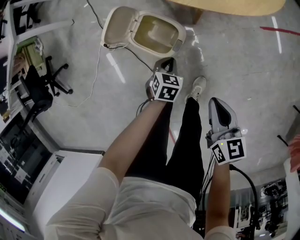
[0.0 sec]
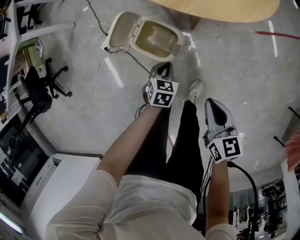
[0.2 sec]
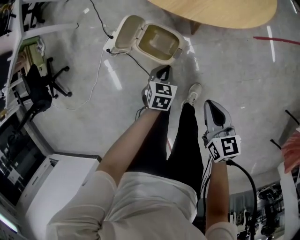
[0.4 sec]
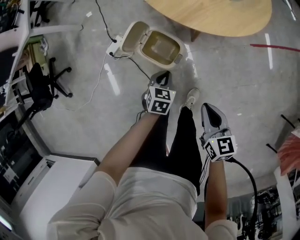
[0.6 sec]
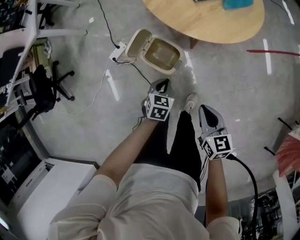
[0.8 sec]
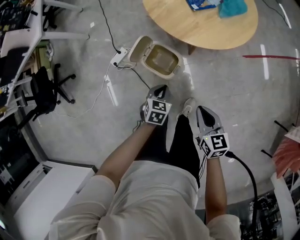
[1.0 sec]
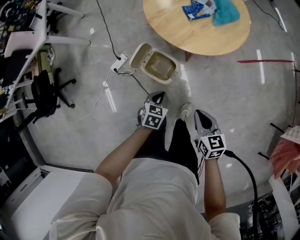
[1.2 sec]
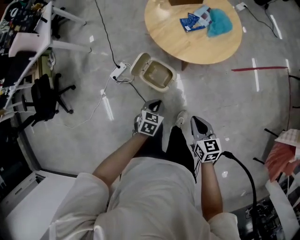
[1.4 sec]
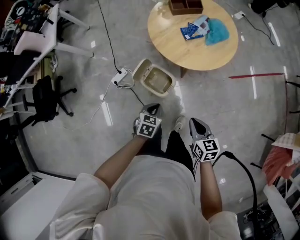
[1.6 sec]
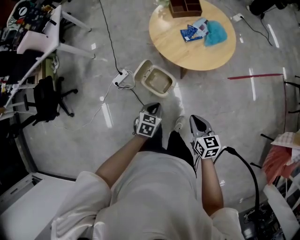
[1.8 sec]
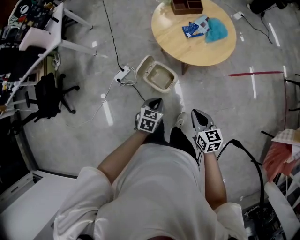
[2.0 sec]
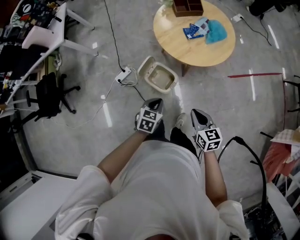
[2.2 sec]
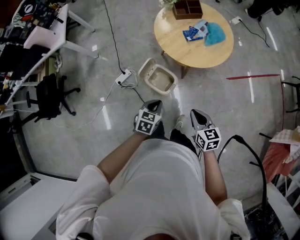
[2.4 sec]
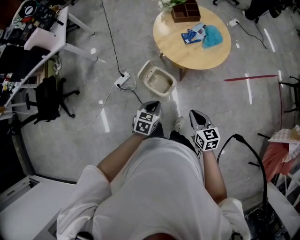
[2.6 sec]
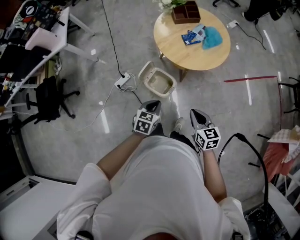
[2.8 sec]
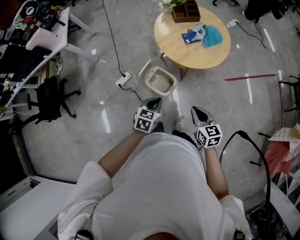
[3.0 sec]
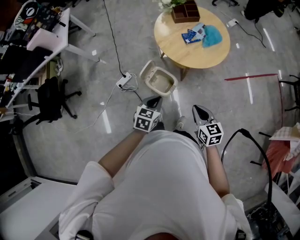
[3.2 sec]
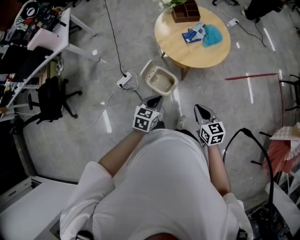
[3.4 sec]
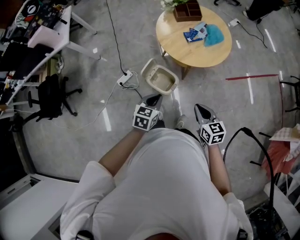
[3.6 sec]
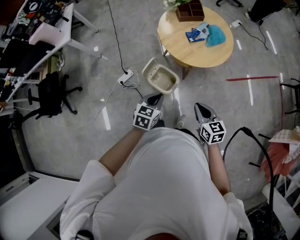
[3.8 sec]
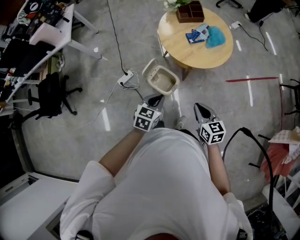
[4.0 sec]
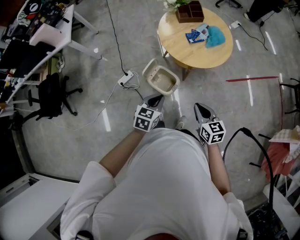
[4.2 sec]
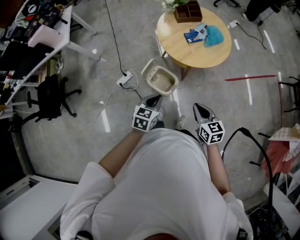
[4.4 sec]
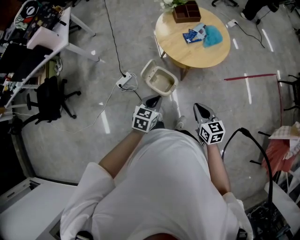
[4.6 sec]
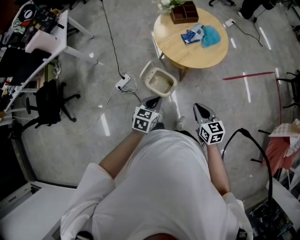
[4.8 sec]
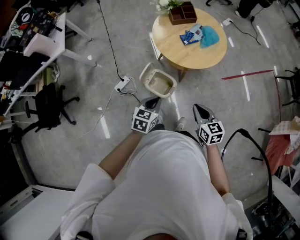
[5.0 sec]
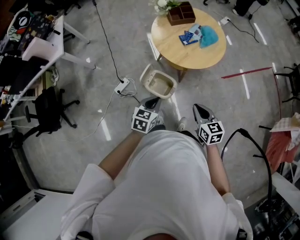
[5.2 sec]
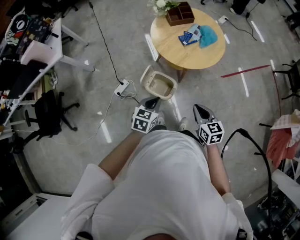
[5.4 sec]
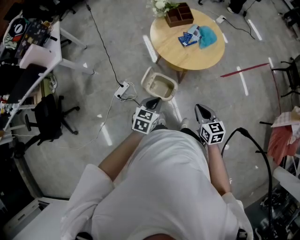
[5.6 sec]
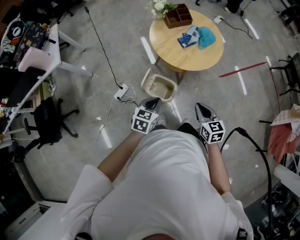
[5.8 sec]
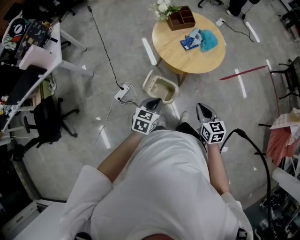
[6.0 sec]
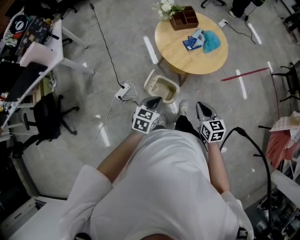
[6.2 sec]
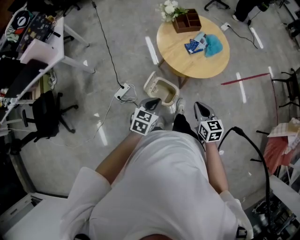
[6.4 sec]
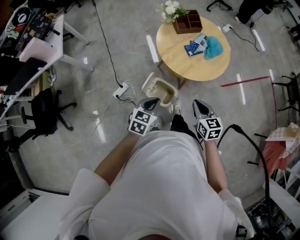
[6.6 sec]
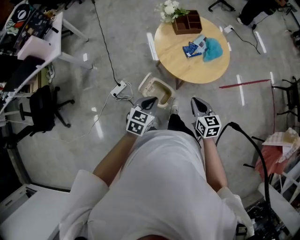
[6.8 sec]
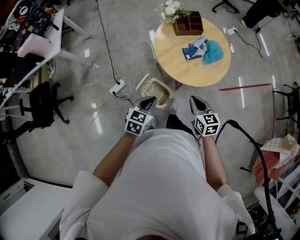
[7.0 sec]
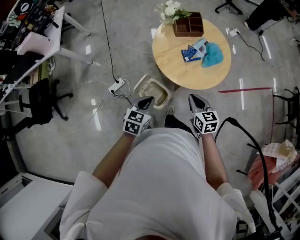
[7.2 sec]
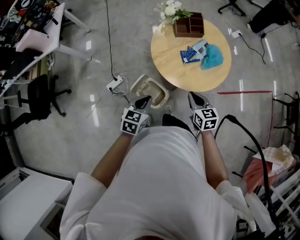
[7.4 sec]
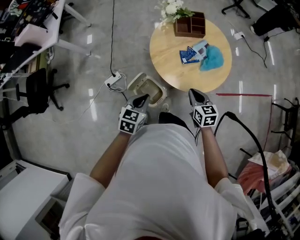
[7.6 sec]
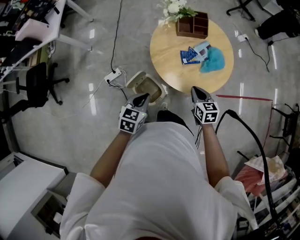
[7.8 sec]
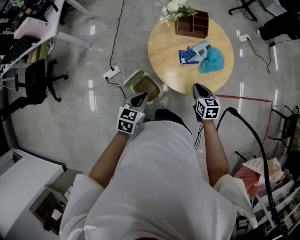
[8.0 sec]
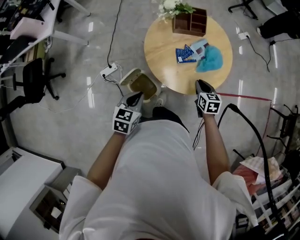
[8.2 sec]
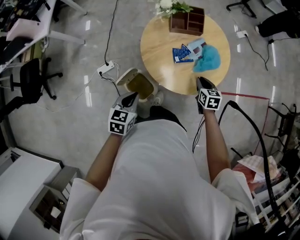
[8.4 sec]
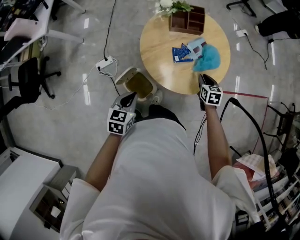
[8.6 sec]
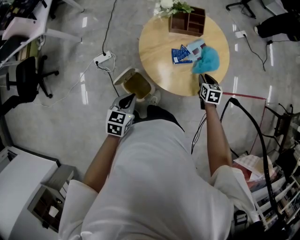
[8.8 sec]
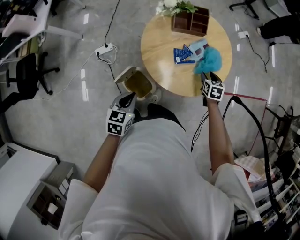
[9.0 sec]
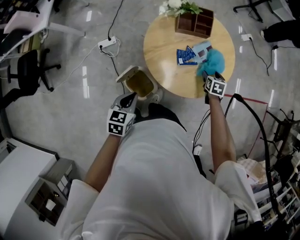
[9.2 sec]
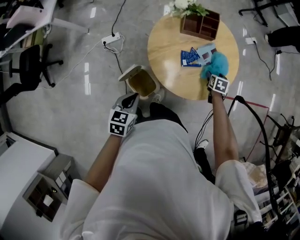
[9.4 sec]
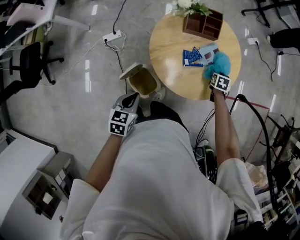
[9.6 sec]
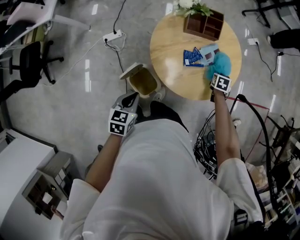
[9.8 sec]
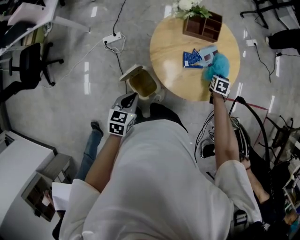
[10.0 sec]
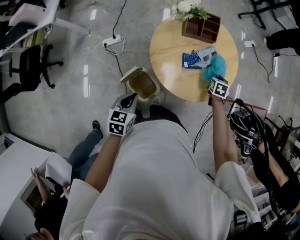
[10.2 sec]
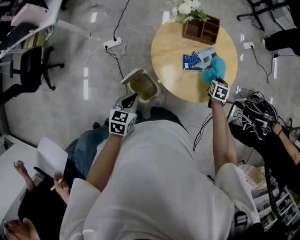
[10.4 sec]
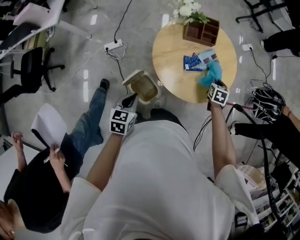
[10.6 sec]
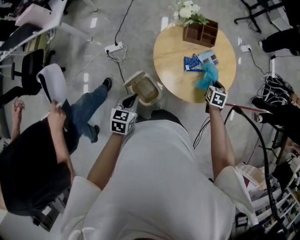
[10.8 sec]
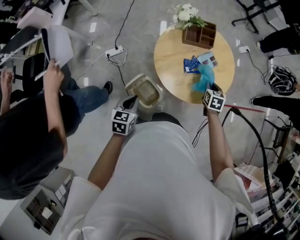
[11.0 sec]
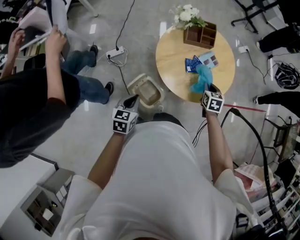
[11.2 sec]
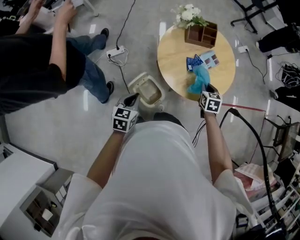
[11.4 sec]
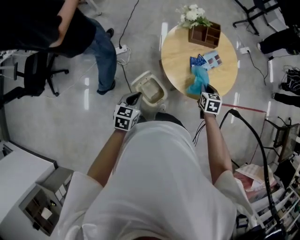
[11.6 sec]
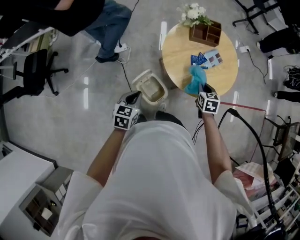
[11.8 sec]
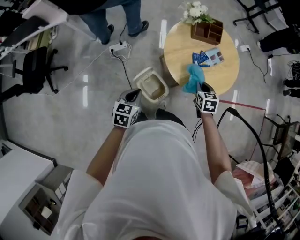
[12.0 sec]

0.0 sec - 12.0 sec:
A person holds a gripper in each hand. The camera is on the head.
0.0 sec - 1.6 sec: The right gripper travels upward by some 20 cm, while the left gripper shifts about 30 cm upward.
1.6 sec - 3.0 sec: The grippers both shift upward by roughly 10 cm.
3.0 sec - 4.4 sec: The grippers move only a little.
4.4 sec - 6.0 sec: The right gripper ends up approximately 5 cm from where it was. The left gripper goes approximately 5 cm to the left.
6.0 sec - 7.6 sec: The right gripper moves forward, approximately 25 cm. Meanwhile the left gripper shifts approximately 15 cm forward.
7.6 sec - 9.0 sec: The left gripper moves roughly 5 cm. Meanwhile the right gripper travels forward, to the right and downward by about 25 cm, turns by some 20 degrees, and opens up.
9.0 sec - 10.4 sec: The right gripper closes up.
10.4 sec - 12.0 sec: The left gripper shifts roughly 10 cm to the left and backward, while the right gripper heads to the left, backward and upward, covering about 25 cm.

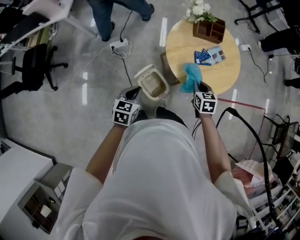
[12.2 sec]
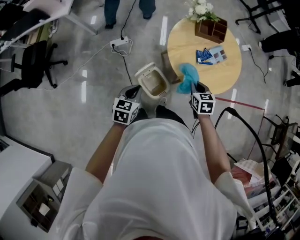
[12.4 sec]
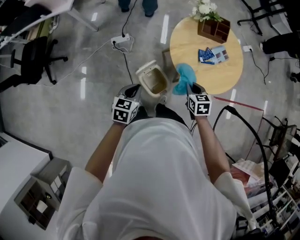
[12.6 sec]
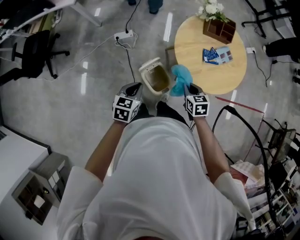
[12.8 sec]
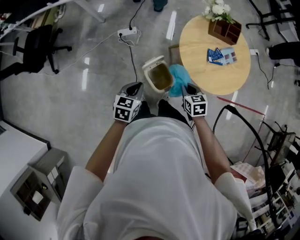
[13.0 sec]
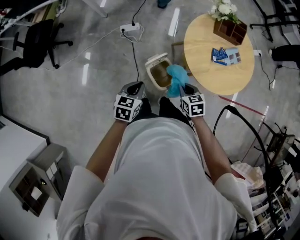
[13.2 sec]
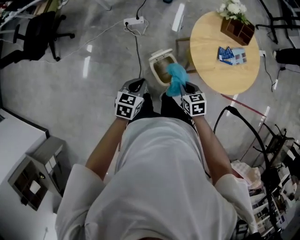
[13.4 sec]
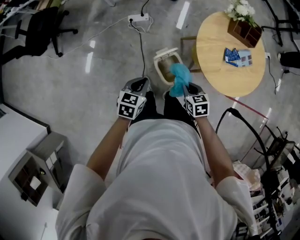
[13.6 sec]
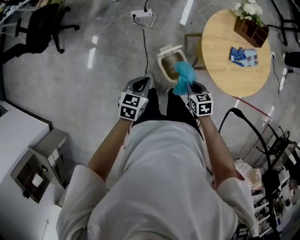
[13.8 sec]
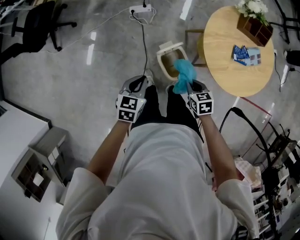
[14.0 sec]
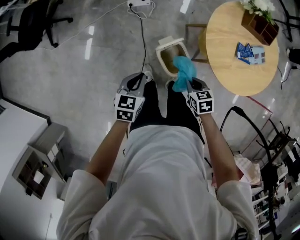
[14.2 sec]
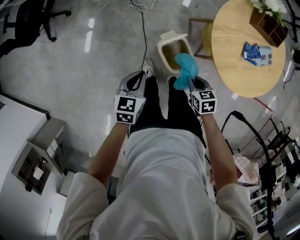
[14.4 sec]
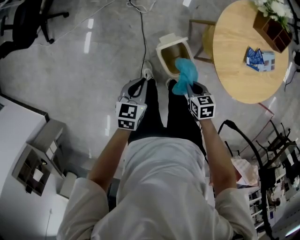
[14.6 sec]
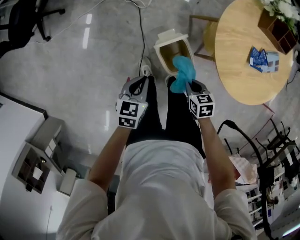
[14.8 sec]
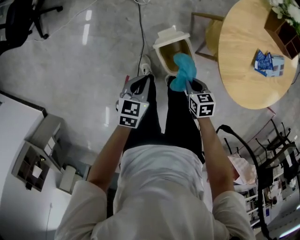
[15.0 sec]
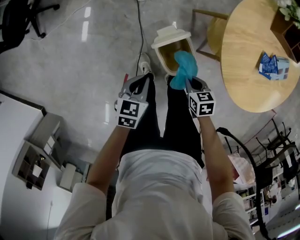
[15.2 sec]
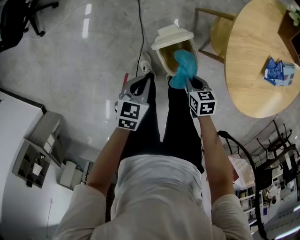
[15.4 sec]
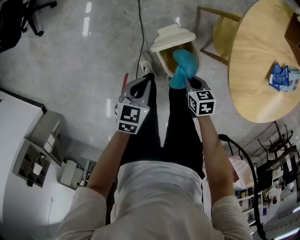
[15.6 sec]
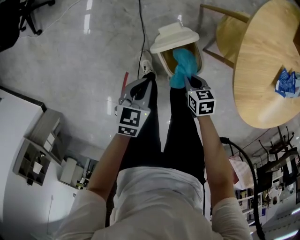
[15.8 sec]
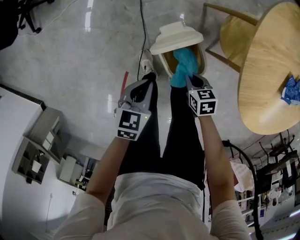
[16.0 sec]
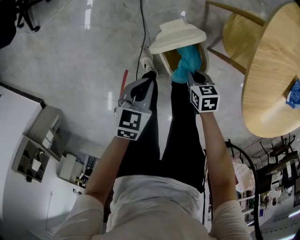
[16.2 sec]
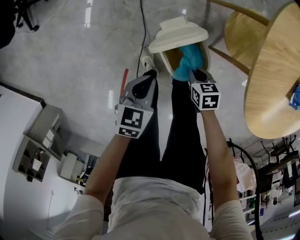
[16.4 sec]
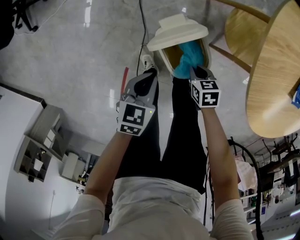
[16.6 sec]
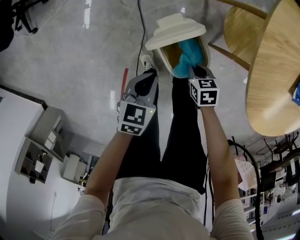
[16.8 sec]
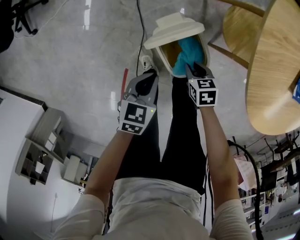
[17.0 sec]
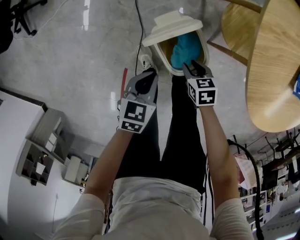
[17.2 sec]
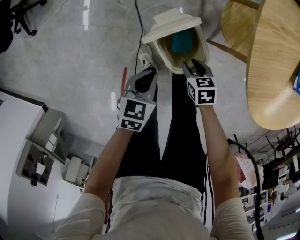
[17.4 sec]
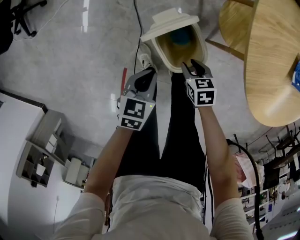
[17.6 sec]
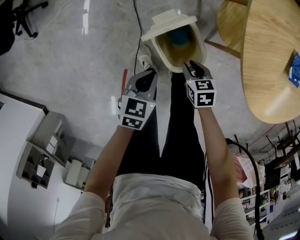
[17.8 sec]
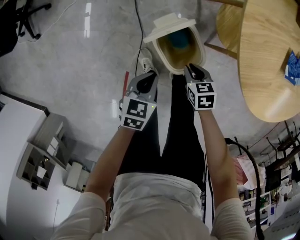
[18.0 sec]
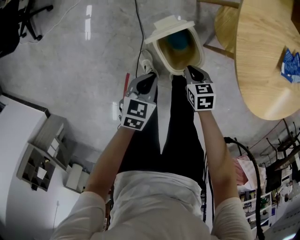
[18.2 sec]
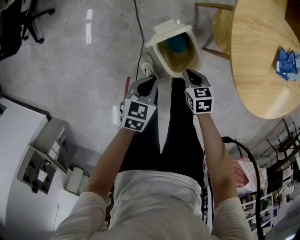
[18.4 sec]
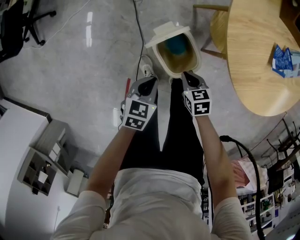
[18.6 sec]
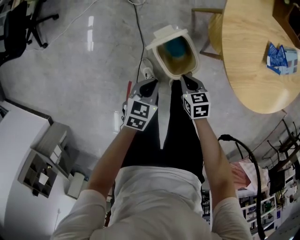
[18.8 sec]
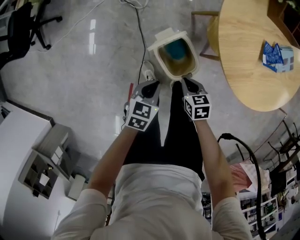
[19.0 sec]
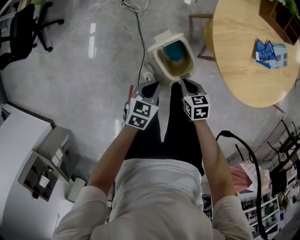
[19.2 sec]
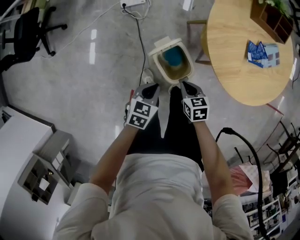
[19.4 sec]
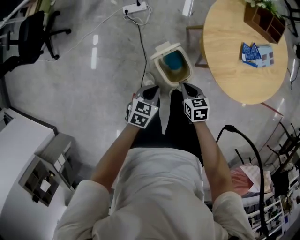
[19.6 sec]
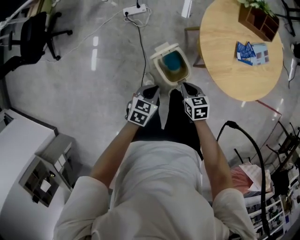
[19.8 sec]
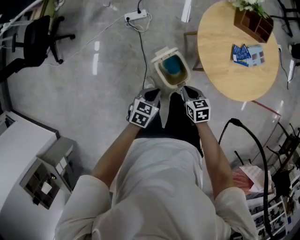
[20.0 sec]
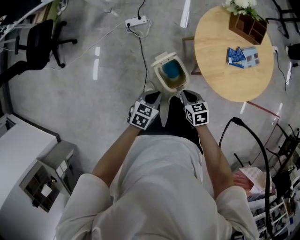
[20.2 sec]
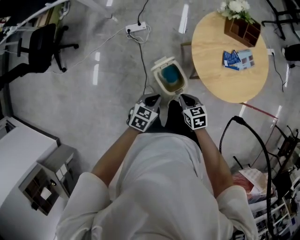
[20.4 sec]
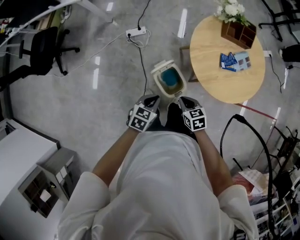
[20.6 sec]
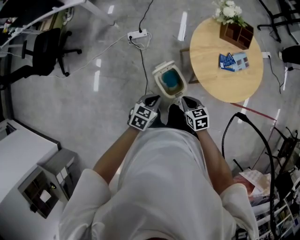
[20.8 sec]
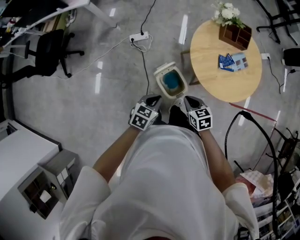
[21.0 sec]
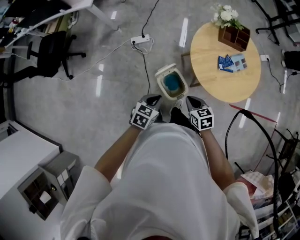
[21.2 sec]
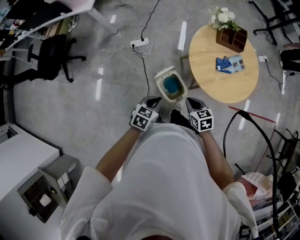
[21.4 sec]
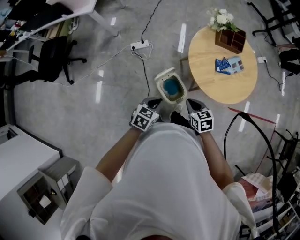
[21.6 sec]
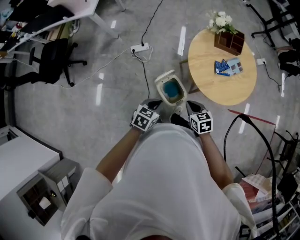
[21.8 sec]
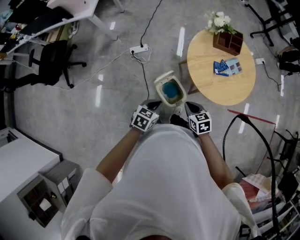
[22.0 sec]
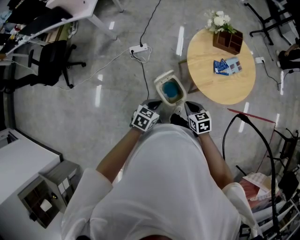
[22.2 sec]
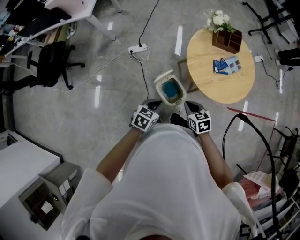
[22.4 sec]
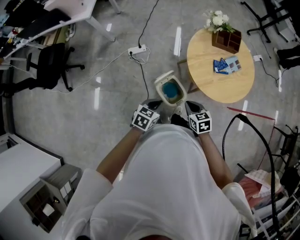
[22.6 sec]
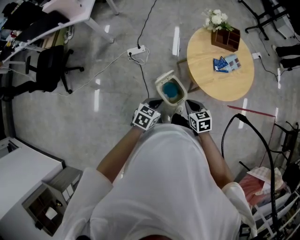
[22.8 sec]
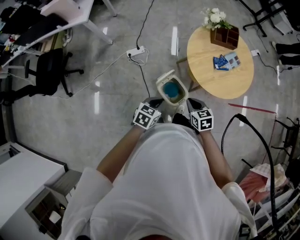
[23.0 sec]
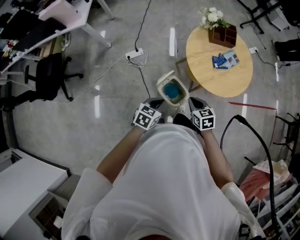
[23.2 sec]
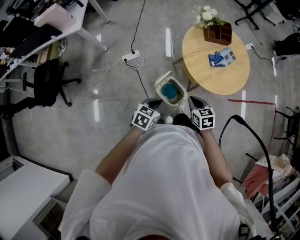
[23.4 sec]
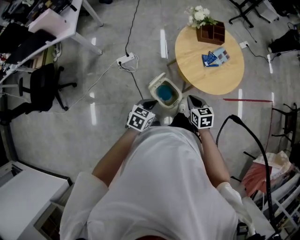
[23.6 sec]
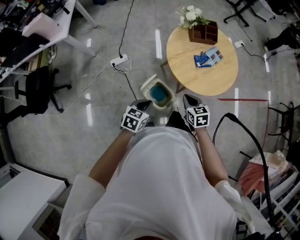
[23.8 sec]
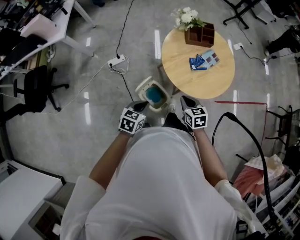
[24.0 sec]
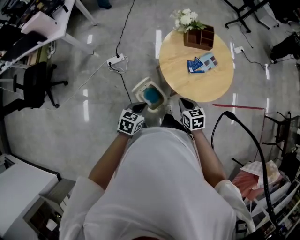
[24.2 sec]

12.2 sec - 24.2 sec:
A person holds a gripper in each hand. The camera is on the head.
12.2 sec - 13.8 sec: The right gripper heads to the left, downward and backward, covering some 20 cm, and rotates approximately 30 degrees. Meanwhile the left gripper is displaced to the left and downward by approximately 10 cm.
13.8 sec - 15.2 sec: Both grippers move downward, approximately 20 cm.
15.2 sec - 16.6 sec: The two grippers go roughly 15 cm downward.
16.6 sec - 18.2 sec: The right gripper goes approximately 5 cm upward, and opens, then closes again.
18.2 sec - 19.8 sec: Both grippers travel together upward, roughly 15 cm.
19.8 sec - 21.2 sec: Both grippers move upward, roughly 15 cm.
21.2 sec - 22.6 sec: The grippers move only a little.
22.6 sec - 24.2 sec: The left gripper travels to the right and forward by roughly 5 cm, while the right gripper heads to the right and forward, covering roughly 10 cm.
